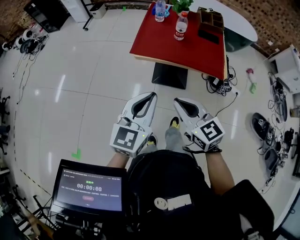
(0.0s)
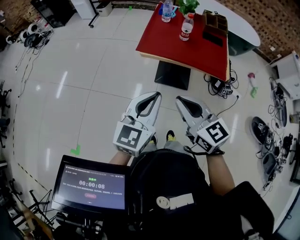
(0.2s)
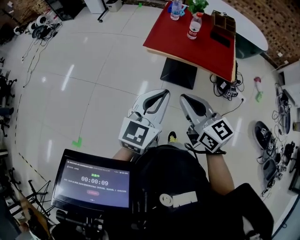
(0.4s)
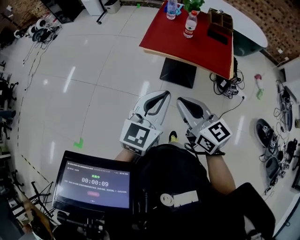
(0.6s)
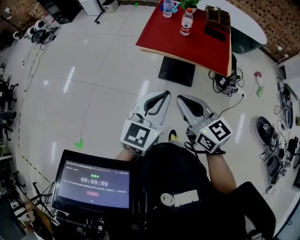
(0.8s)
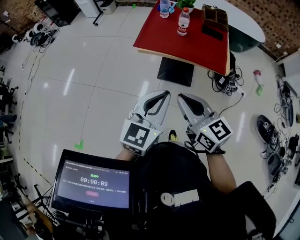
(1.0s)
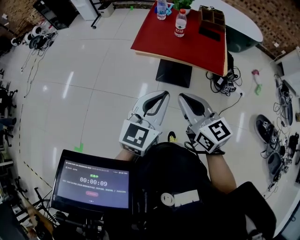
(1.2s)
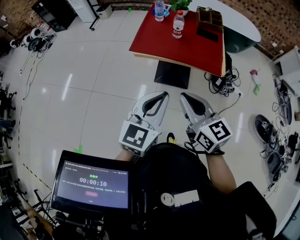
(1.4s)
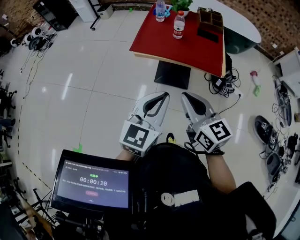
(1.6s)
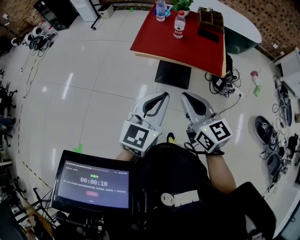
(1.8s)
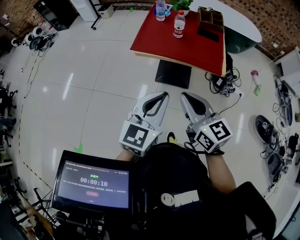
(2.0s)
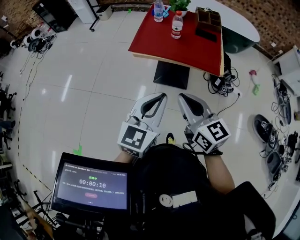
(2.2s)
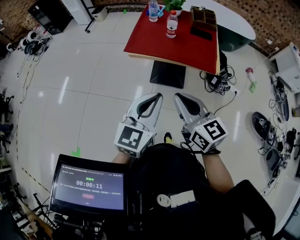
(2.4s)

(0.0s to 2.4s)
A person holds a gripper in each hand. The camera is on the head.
0.0s - 1.2s: The right gripper moves roughly 5 cm. The left gripper heads to the right, covering about 5 cm.
1.2s - 2.4s: The grippers stay close to where they were, moving slightly.

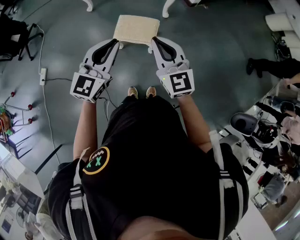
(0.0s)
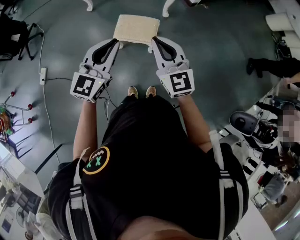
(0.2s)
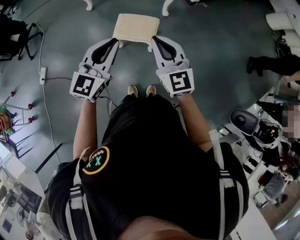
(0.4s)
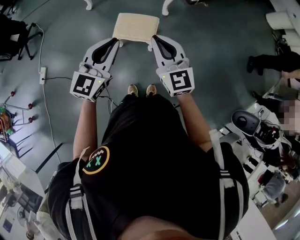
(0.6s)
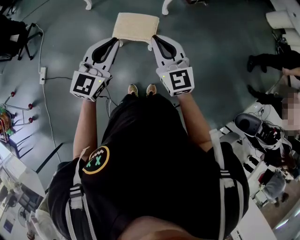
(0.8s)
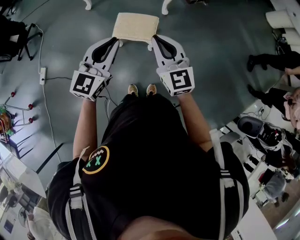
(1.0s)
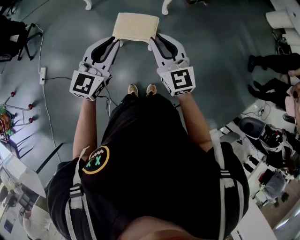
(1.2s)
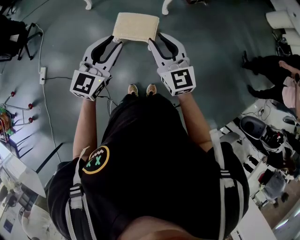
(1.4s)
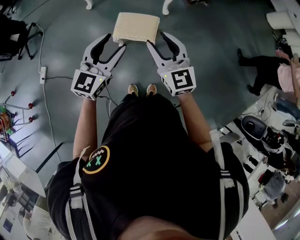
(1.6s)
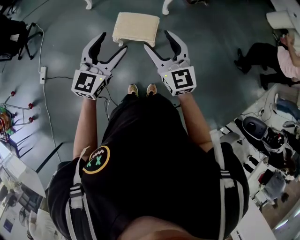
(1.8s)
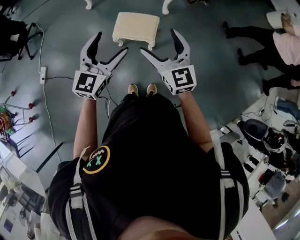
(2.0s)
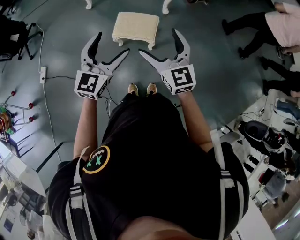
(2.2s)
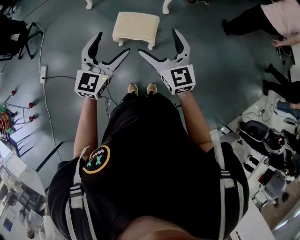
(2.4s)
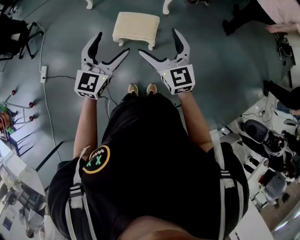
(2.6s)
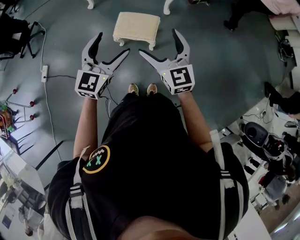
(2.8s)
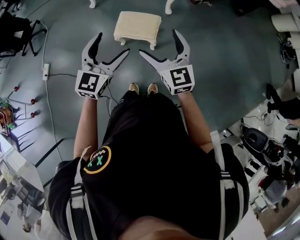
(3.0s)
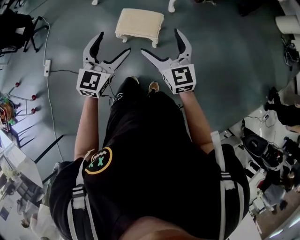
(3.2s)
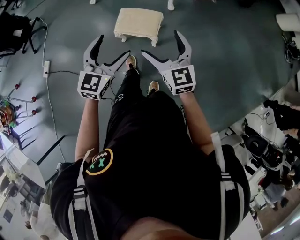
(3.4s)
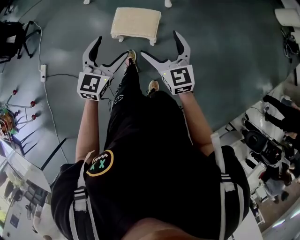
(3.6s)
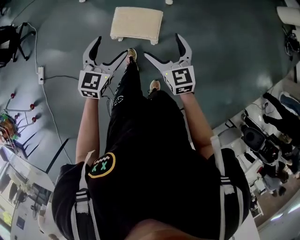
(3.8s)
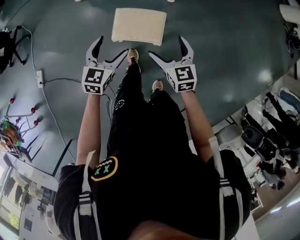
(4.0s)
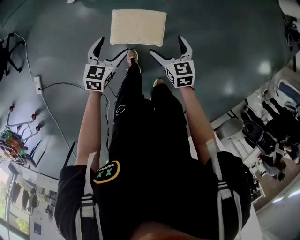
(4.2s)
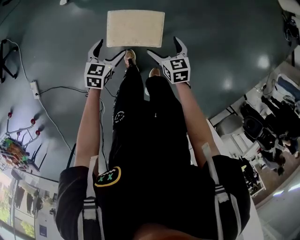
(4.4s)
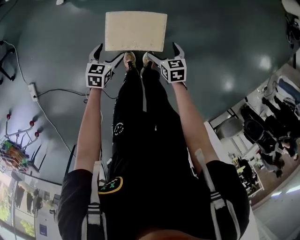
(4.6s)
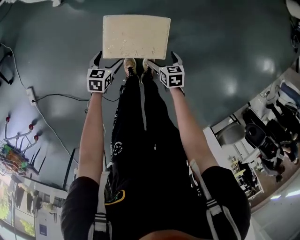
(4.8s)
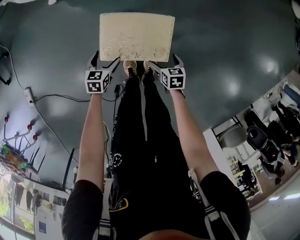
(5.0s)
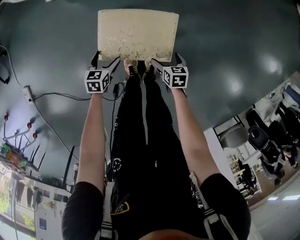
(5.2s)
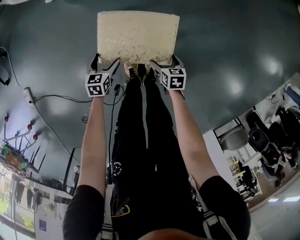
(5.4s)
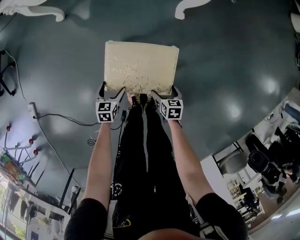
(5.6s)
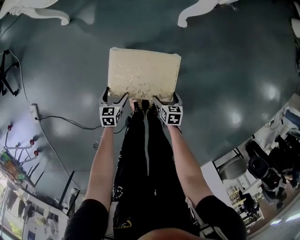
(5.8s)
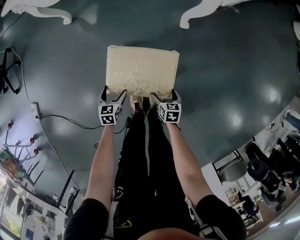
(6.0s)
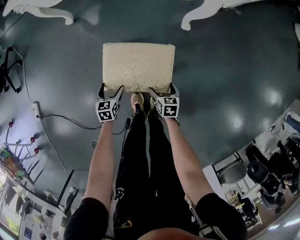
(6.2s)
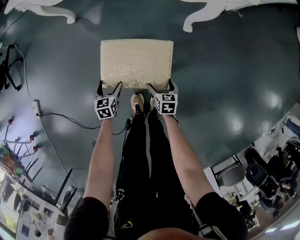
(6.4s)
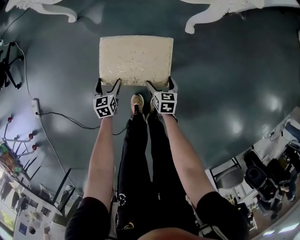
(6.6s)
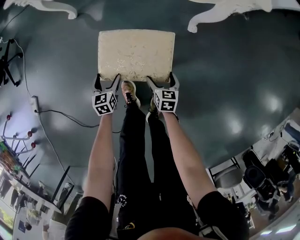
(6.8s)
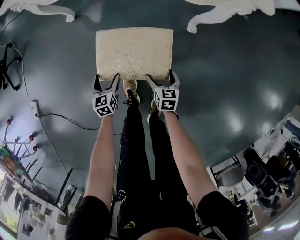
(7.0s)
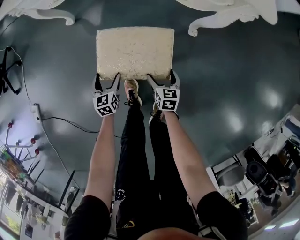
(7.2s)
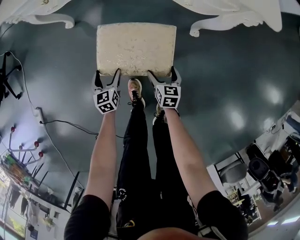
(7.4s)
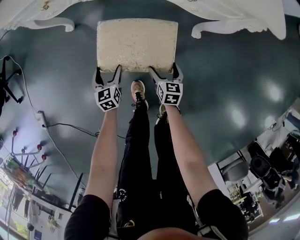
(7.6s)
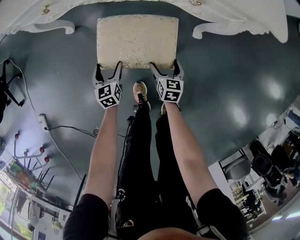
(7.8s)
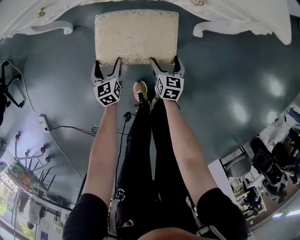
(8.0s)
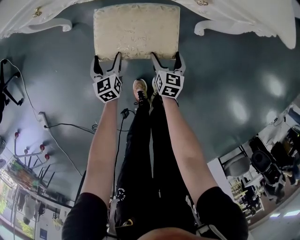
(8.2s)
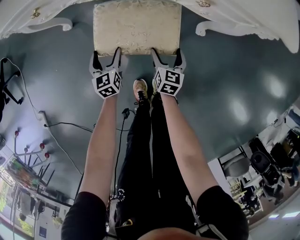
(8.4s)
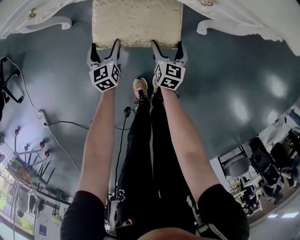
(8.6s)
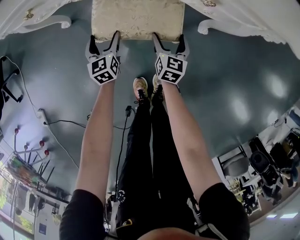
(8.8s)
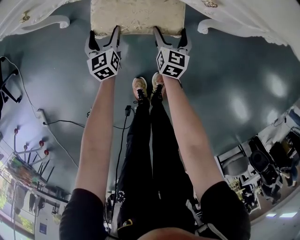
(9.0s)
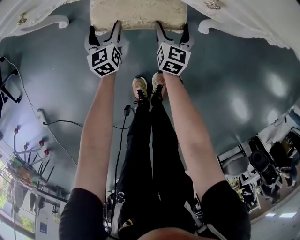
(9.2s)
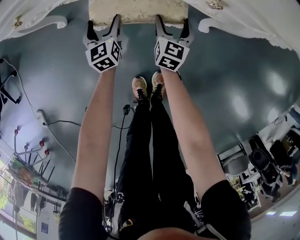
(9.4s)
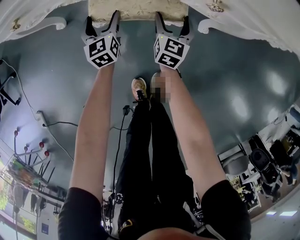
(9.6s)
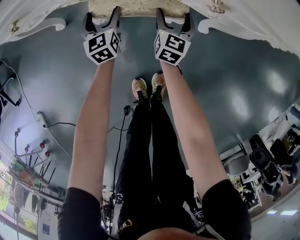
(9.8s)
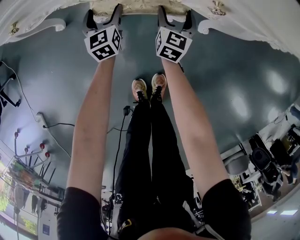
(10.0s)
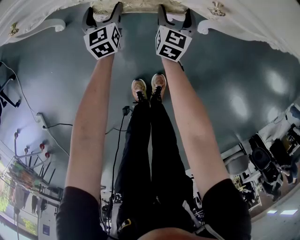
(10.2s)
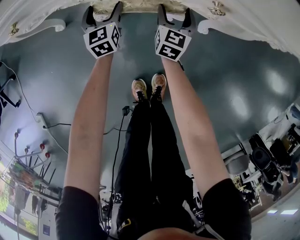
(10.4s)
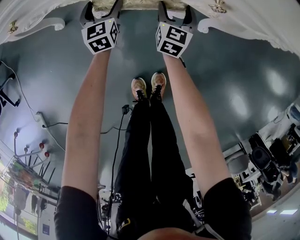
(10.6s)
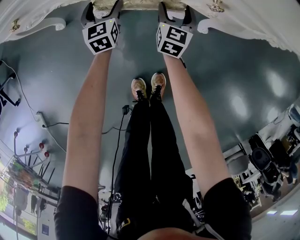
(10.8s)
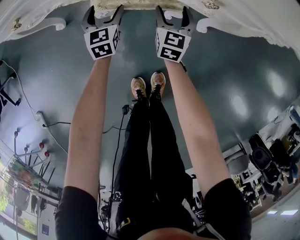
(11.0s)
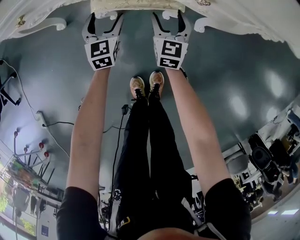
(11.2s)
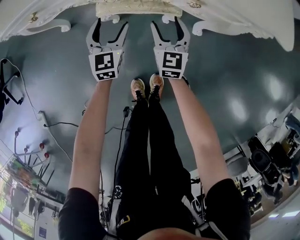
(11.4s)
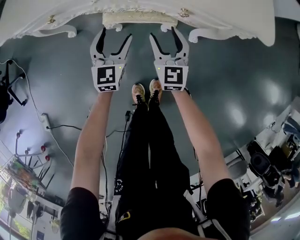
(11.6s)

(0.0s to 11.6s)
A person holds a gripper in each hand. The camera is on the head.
0.0s - 1.4s: The grippers stay close to where they were, moving slightly.
1.4s - 2.8s: The left gripper opens up, while the right gripper opens up.
2.8s - 4.4s: Both grippers travel together downward and forward, roughly 50 cm. The left gripper rotates approximately 40 degrees; the right gripper angles its fingers downward, by some 40 degrees.
4.4s - 5.8s: The two grippers go about 35 cm downward. The left gripper turns by approximately 20 degrees. The right gripper rotates approximately 30 degrees.
5.8s - 7.2s: The left gripper moves forward and to the left, approximately 20 cm, and rotates some 20 degrees. Meanwhile the right gripper travels forward by roughly 20 cm.
7.2s - 8.8s: The grippers both shift forward by about 25 cm. The right gripper rotates some 20 degrees.
8.8s - 10.2s: The two grippers go roughly 10 cm forward.
10.2s - 11.6s: The grippers both shift upward and backward by approximately 25 cm. The left gripper turns by some 20 degrees. The right gripper turns by some 30 degrees.

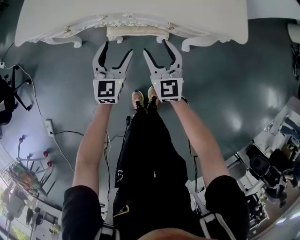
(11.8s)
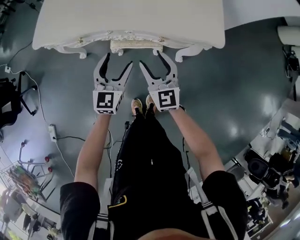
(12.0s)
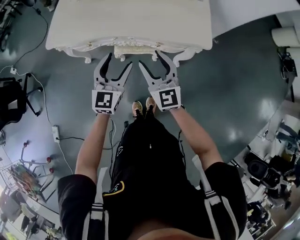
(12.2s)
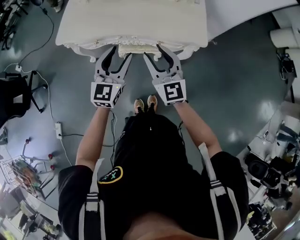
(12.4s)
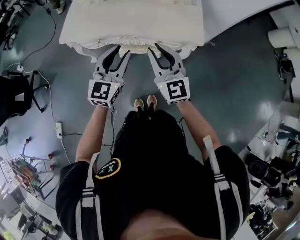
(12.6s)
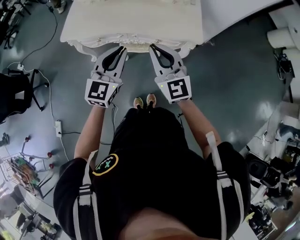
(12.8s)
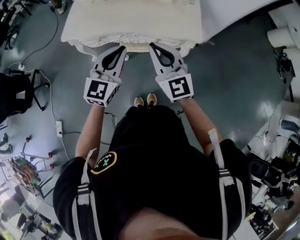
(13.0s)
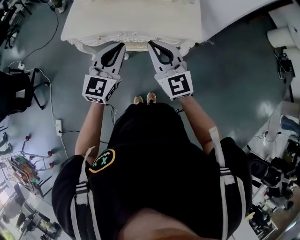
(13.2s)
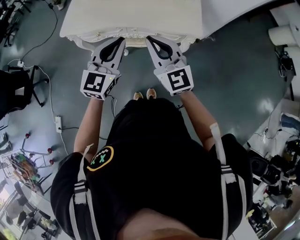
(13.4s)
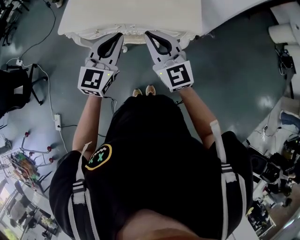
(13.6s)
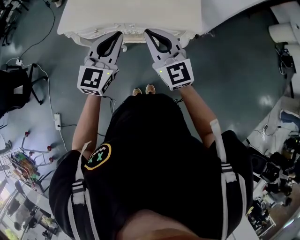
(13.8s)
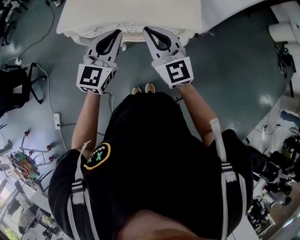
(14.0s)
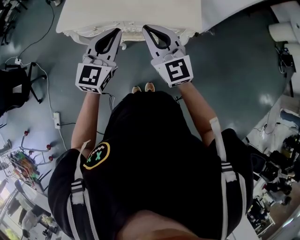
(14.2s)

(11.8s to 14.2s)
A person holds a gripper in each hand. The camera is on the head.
11.8s - 13.0s: Both grippers move upward, approximately 40 cm. The left gripper closes, while the right gripper closes its fingers.
13.0s - 14.2s: The grippers make only small movements.

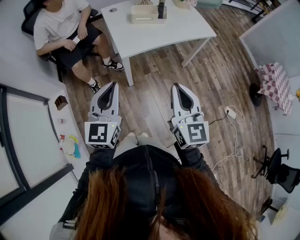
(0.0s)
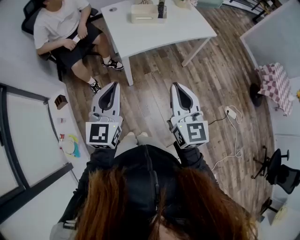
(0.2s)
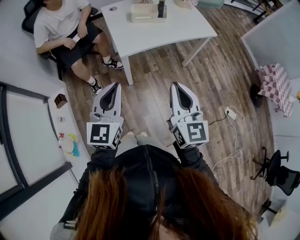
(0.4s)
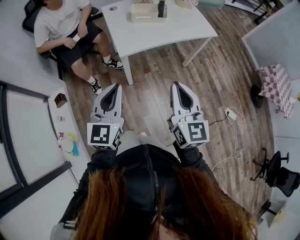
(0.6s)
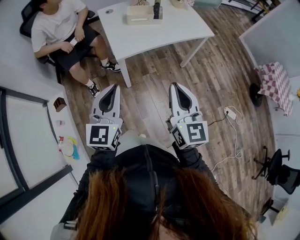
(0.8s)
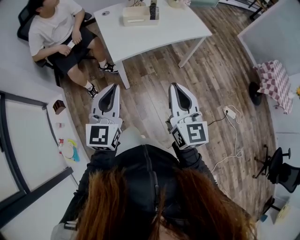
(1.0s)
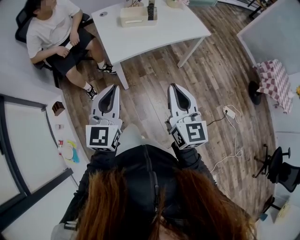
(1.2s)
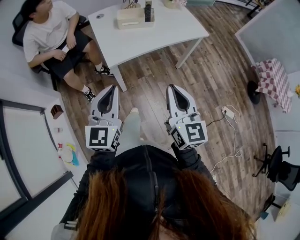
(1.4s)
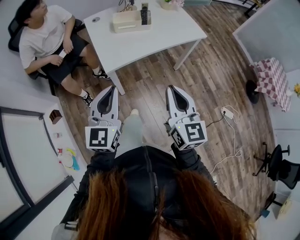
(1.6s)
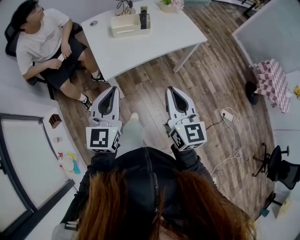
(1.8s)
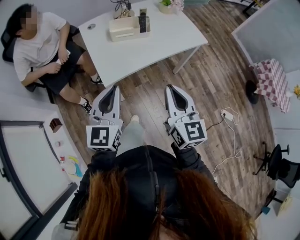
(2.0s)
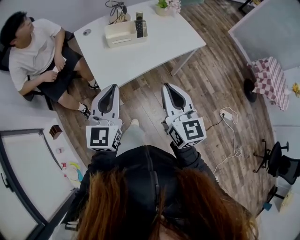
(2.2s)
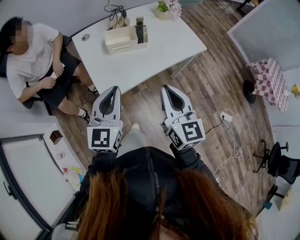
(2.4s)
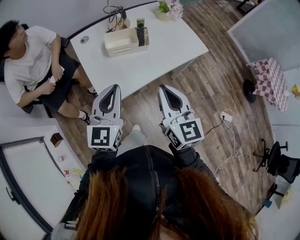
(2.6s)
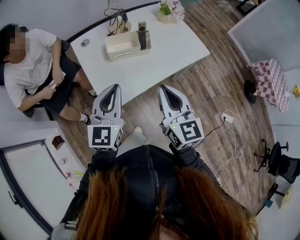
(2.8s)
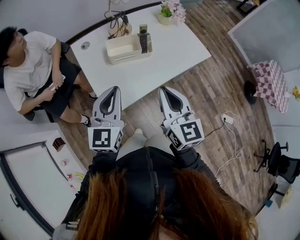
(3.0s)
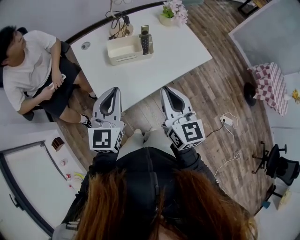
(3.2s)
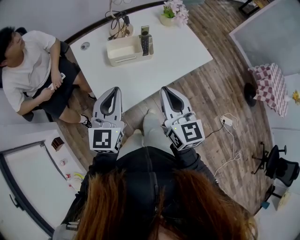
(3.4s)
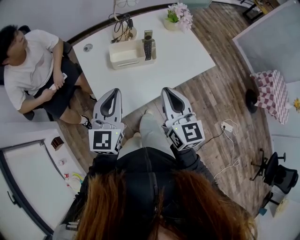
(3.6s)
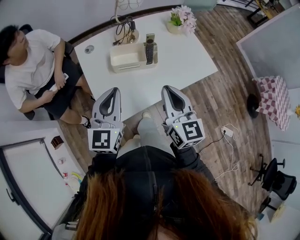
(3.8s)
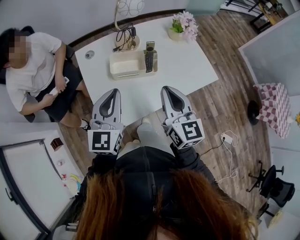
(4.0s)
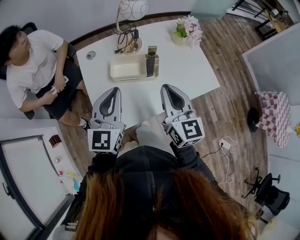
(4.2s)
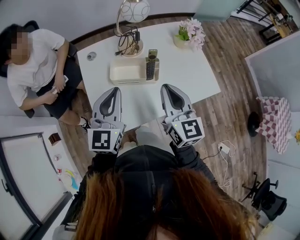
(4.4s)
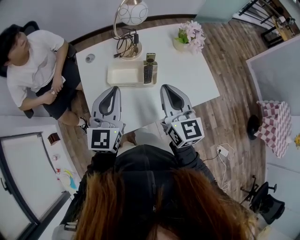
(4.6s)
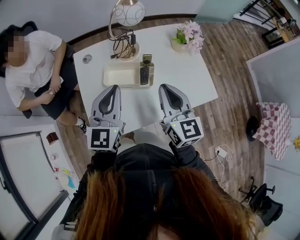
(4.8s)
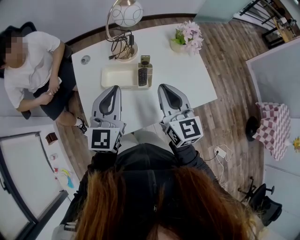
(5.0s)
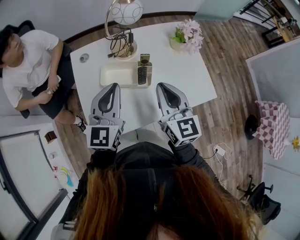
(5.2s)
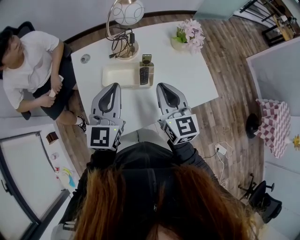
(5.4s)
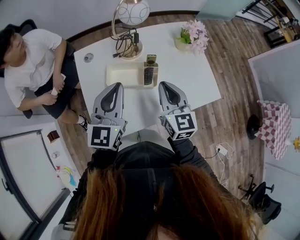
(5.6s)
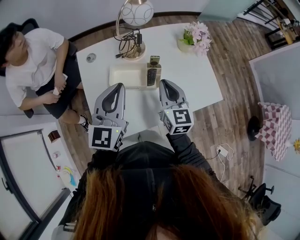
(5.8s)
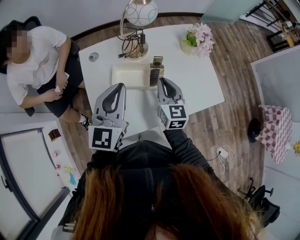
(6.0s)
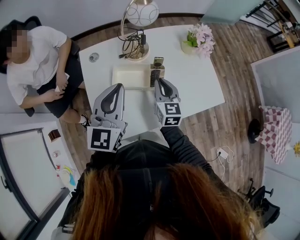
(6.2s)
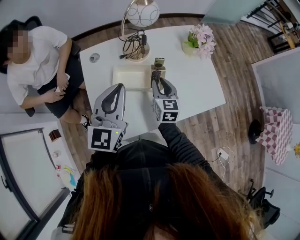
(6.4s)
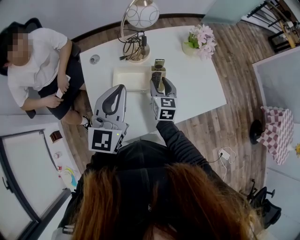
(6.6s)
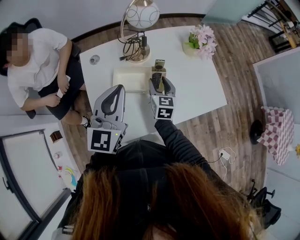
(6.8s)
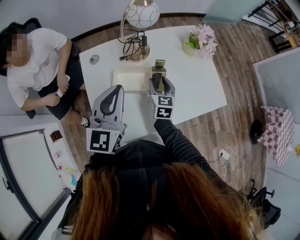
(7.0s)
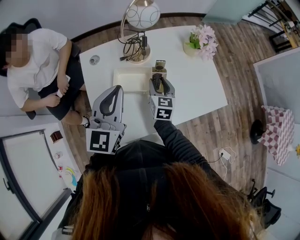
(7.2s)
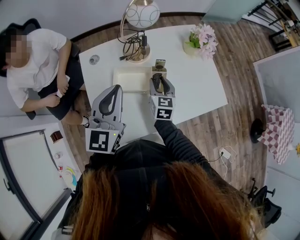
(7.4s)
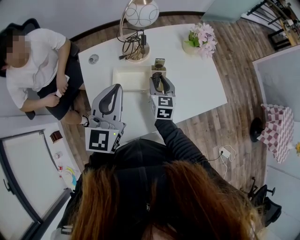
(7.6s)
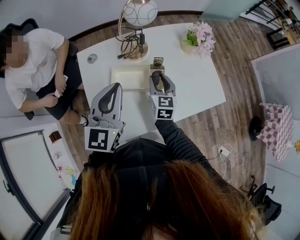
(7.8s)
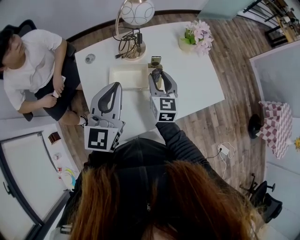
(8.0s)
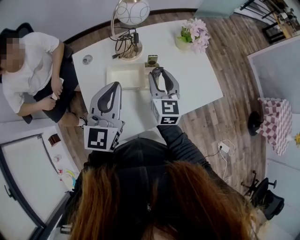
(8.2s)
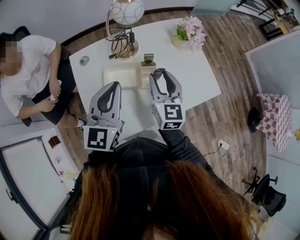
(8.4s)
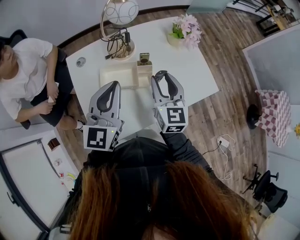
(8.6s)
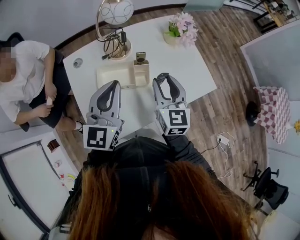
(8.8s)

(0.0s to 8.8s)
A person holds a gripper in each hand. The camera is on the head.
0.0s - 1.4s: The two grippers go roughly 5 cm to the right.
1.4s - 3.0s: Both grippers travel together forward, about 30 cm.
3.0s - 4.4s: Both grippers move forward, some 15 cm.
4.4s - 5.8s: The left gripper goes about 5 cm forward, while the right gripper heads forward and downward, covering some 10 cm.
5.8s - 7.4s: The right gripper shifts approximately 15 cm downward and forward, and opens up.
7.4s - 8.8s: The right gripper shifts approximately 15 cm upward, to the right and backward. The left gripper goes approximately 5 cm to the right.
